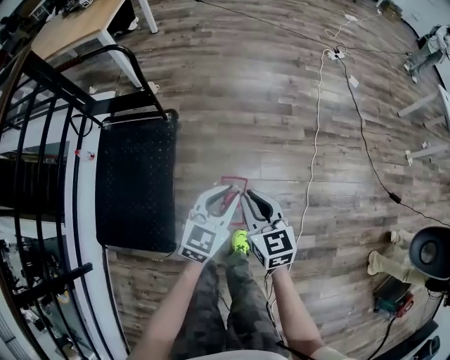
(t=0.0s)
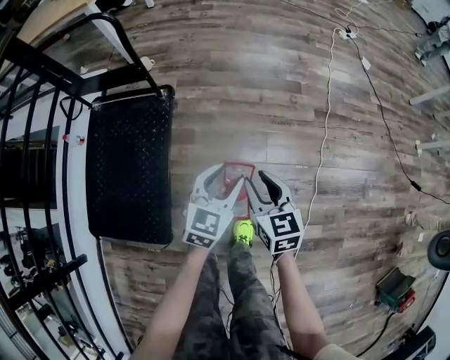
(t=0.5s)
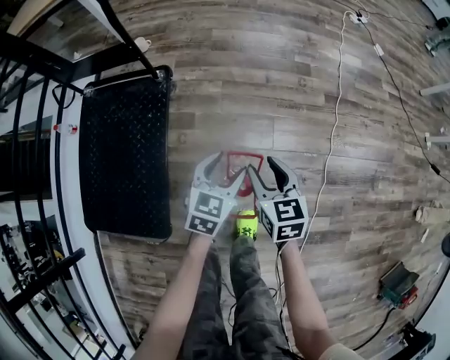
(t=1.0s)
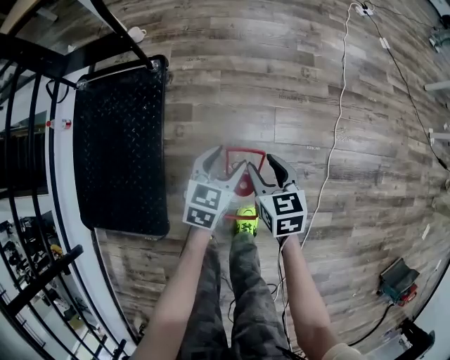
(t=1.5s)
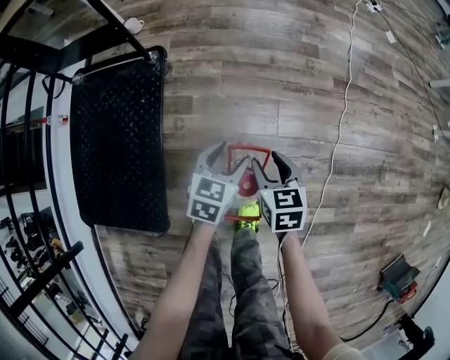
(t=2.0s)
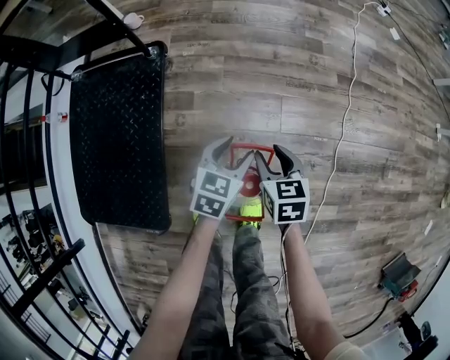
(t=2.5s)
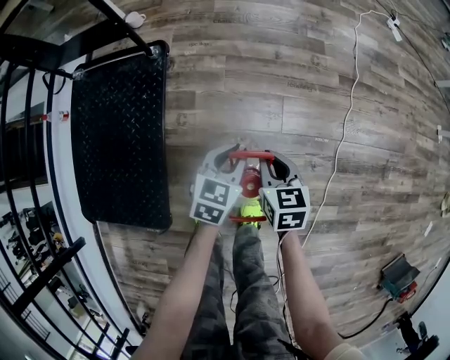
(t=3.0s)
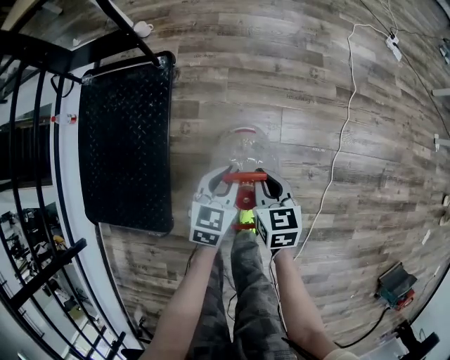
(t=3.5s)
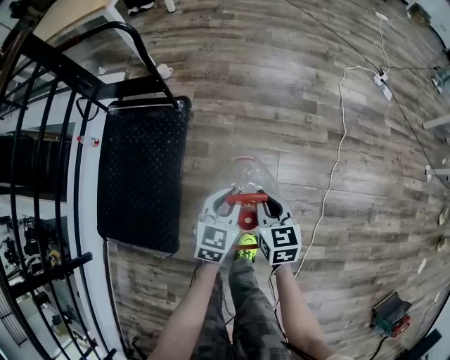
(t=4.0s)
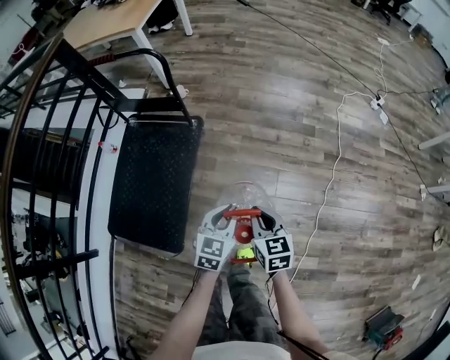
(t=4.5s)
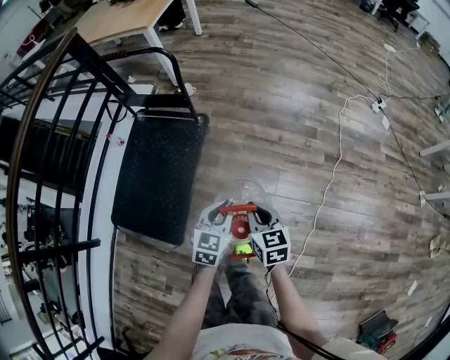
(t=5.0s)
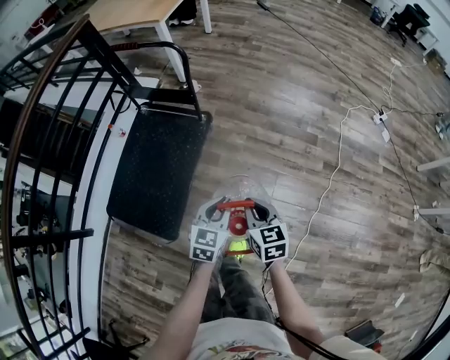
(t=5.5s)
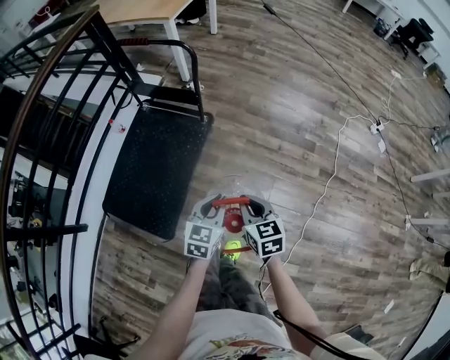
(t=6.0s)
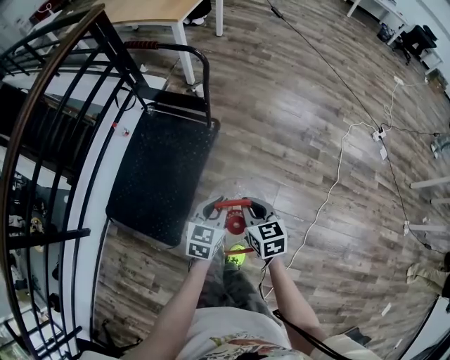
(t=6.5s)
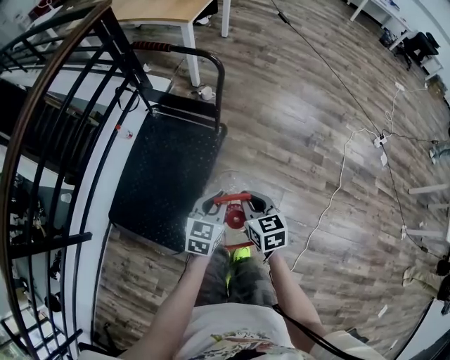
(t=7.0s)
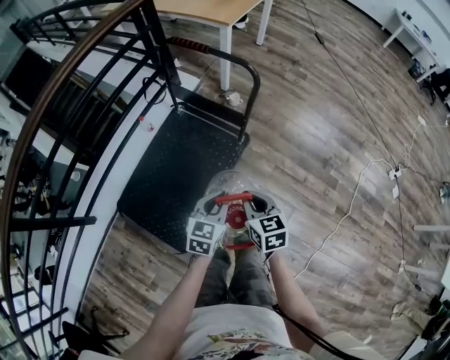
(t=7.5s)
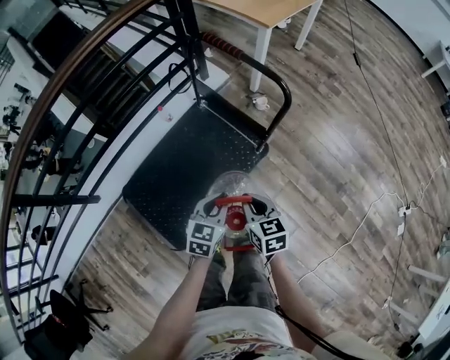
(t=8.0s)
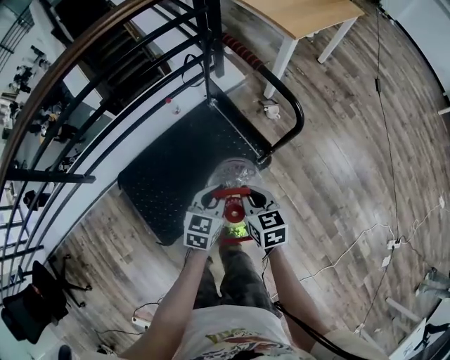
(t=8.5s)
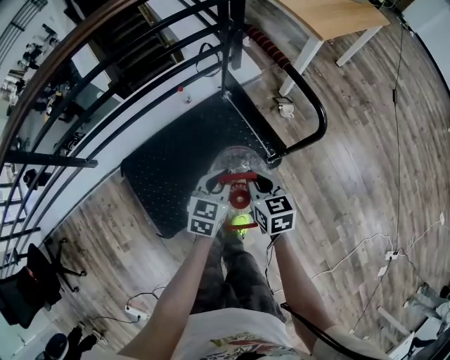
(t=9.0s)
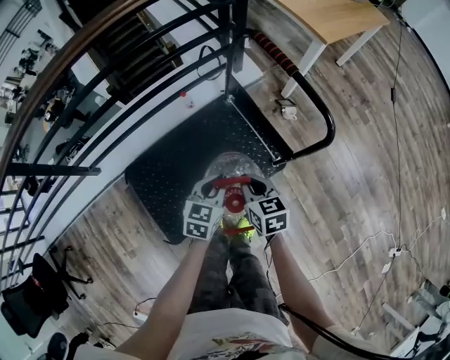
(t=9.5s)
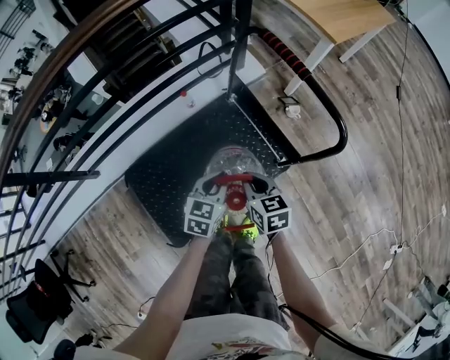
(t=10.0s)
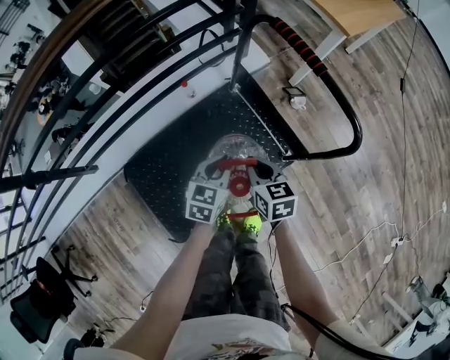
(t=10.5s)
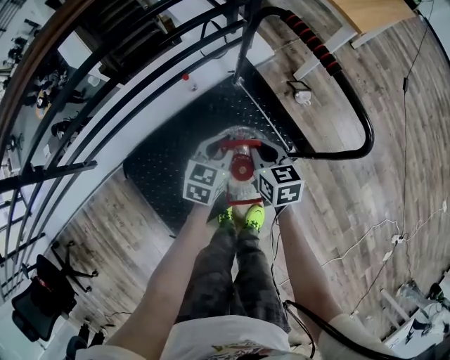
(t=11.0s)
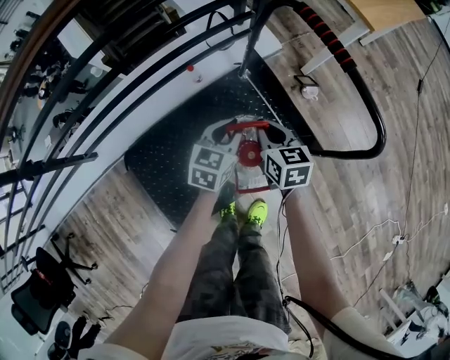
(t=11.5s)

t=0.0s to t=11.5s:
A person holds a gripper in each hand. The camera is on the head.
t=0.0s to t=2.0s: The grippers both shift downward by roughly 35 cm. The right gripper swivels about 20 degrees, and opens. The left gripper changes its angle by approximately 20 degrees, and opens its fingers.
t=2.0s to t=4.0s: The two grippers go some 15 cm upward. The left gripper closes. Meanwhile the right gripper closes up.
t=4.0s to t=6.0s: Both grippers move upward and to the left, roughly 20 cm. The right gripper rotates roughly 20 degrees.
t=6.0s to t=7.5s: The two grippers go about 25 cm to the left and forward.
t=7.5s to t=9.5s: The left gripper moves about 25 cm, and swivels roughly 30 degrees. Meanwhile the right gripper shifts by some 30 cm, and rotates about 30 degrees.
t=9.5s to t=11.5s: Both grippers move forward and downward, roughly 20 cm.

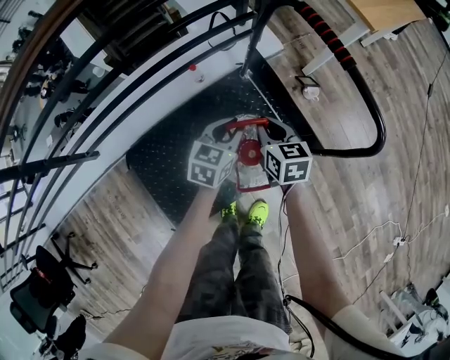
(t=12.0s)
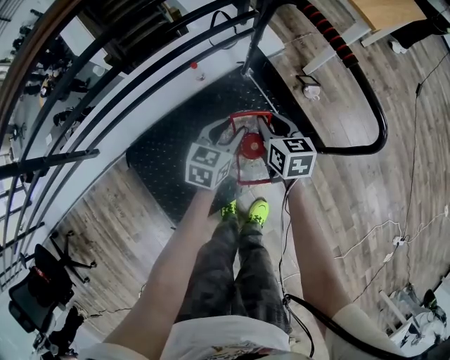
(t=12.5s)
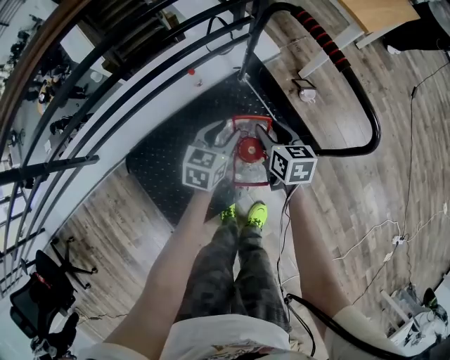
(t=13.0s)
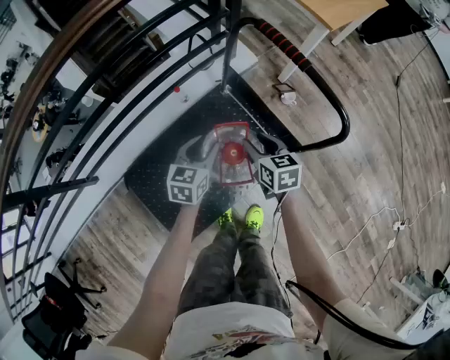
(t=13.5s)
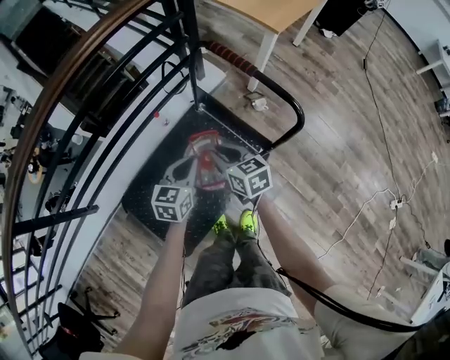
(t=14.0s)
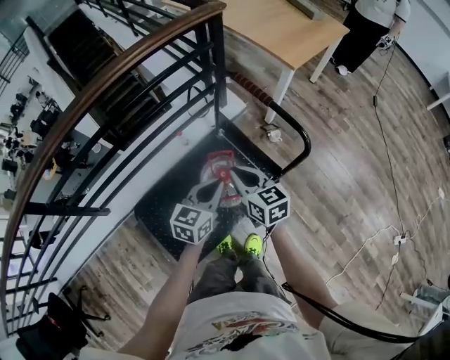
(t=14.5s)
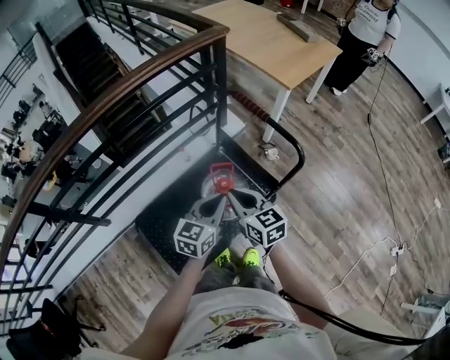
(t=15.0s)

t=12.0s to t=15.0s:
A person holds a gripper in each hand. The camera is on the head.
t=12.0s to t=13.5s: The grippers both shift upward by about 5 cm. The right gripper opens up. Meanwhile the left gripper opens its fingers.
t=13.5s to t=15.0s: Both grippers travel together upward and backward, roughly 30 cm. The right gripper swivels some 20 degrees, and closes up; the left gripper closes up.

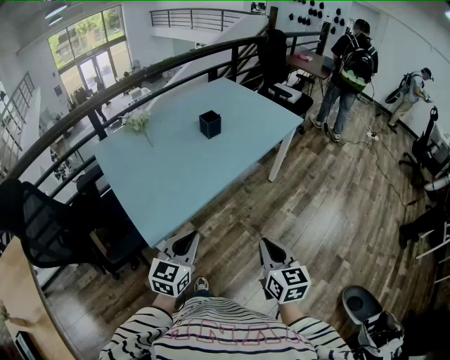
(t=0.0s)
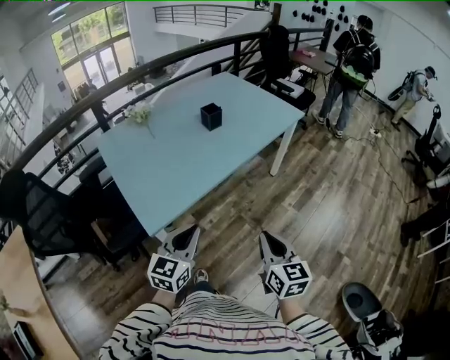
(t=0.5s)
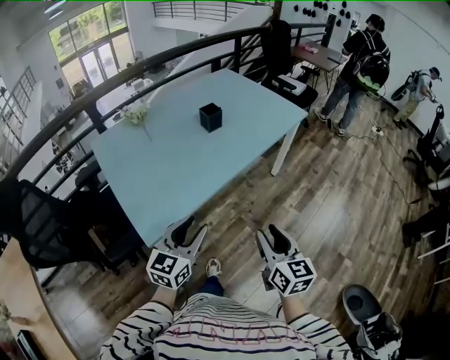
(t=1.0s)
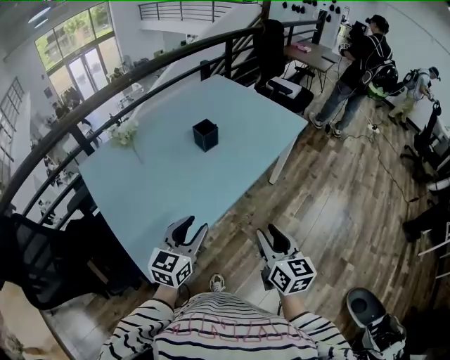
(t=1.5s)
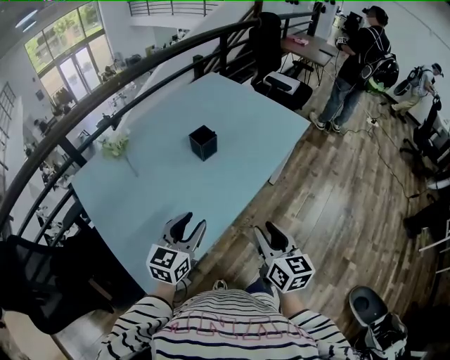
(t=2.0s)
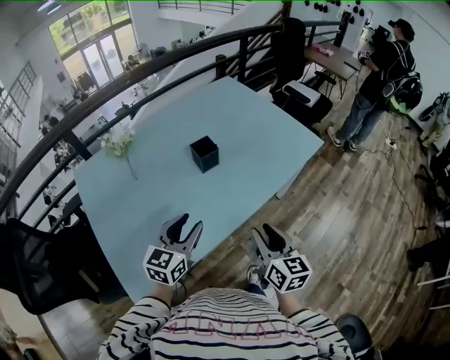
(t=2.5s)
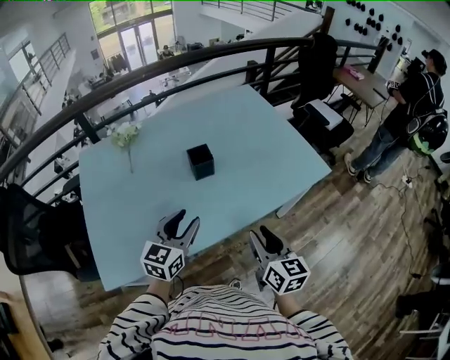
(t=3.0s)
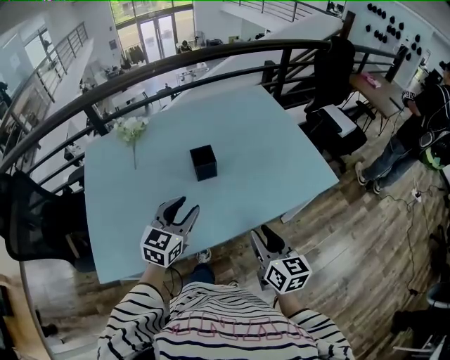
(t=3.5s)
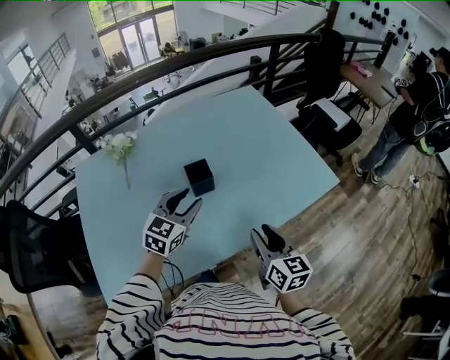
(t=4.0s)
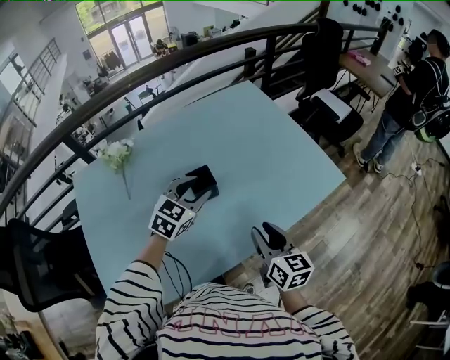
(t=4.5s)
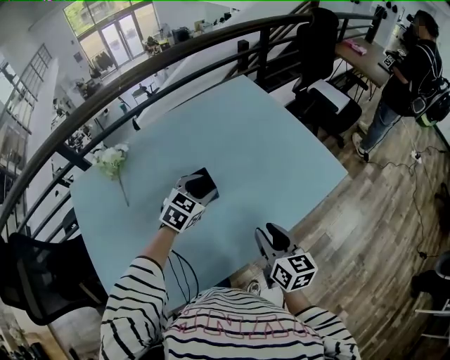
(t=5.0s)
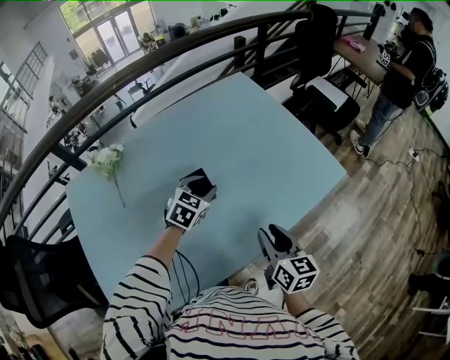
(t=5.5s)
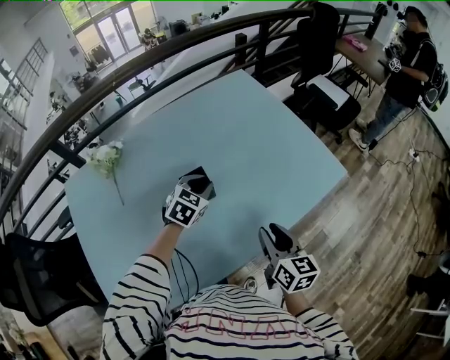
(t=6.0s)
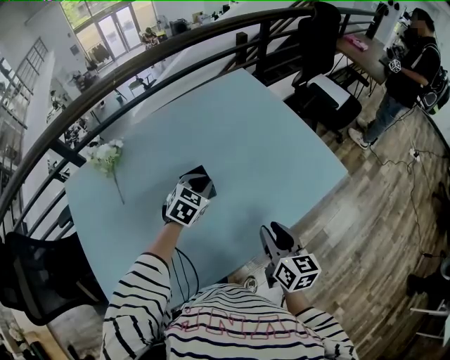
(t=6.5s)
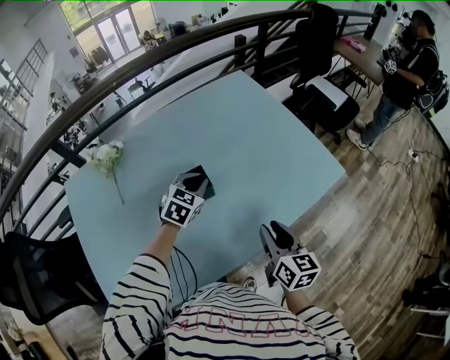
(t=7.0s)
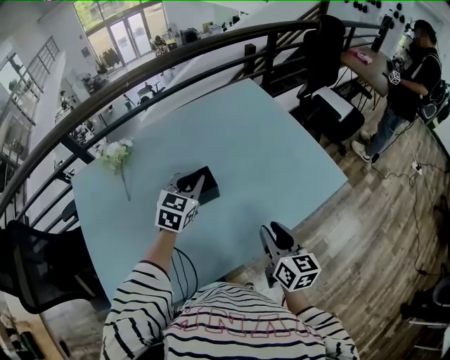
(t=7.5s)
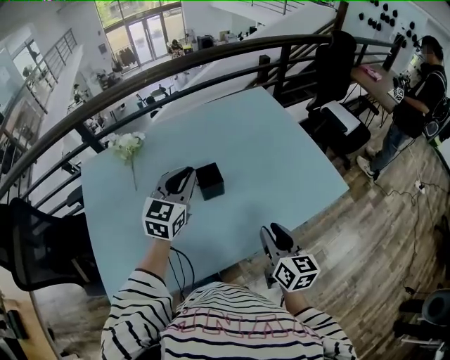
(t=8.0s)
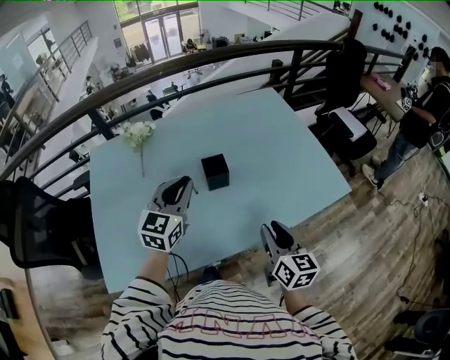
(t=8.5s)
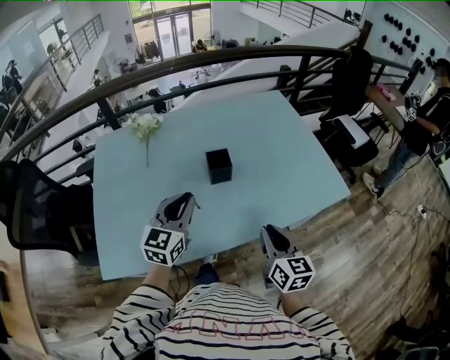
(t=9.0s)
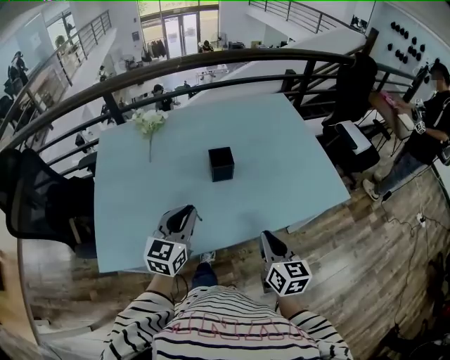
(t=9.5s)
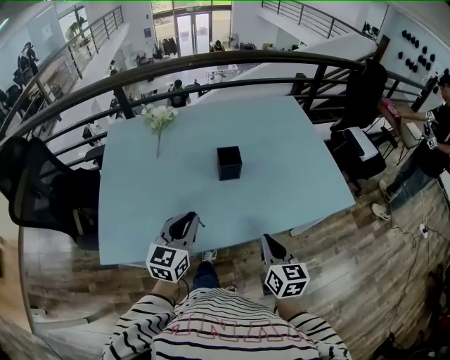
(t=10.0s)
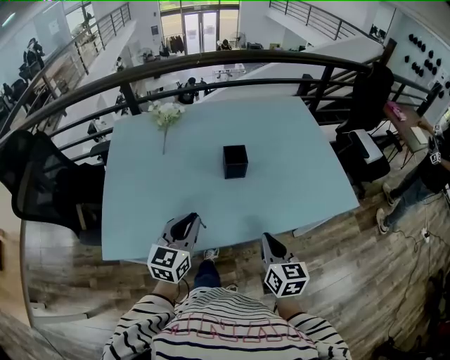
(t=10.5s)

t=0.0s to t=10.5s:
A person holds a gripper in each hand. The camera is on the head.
t=0.0s to t=2.0s: The grippers both shift forward by some 30 cm. The right gripper opens. Meanwhile the left gripper opens up.
t=2.0s to t=4.0s: The left gripper changes place by about 30 cm. Meanwhile the right gripper shifts by approximately 30 cm, and rotates approximately 20 degrees.
t=4.0s to t=6.5s: The left gripper moves forward and downward, approximately 20 cm, swivels approximately 20 degrees, and closes its fingers. The right gripper goes roughly 5 cm forward.
t=6.5s to t=8.5s: The left gripper goes about 25 cm backward, upward and to the left, and points its fingers approximately 30 degrees further upward. Meanwhile the right gripper heads backward, covering approximately 5 cm.
t=8.5s to t=10.5s: The left gripper heads backward and downward, covering roughly 20 cm. Meanwhile the right gripper is displaced backward by about 5 cm, and closes its fingers.

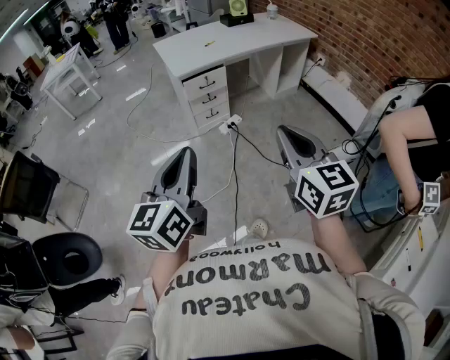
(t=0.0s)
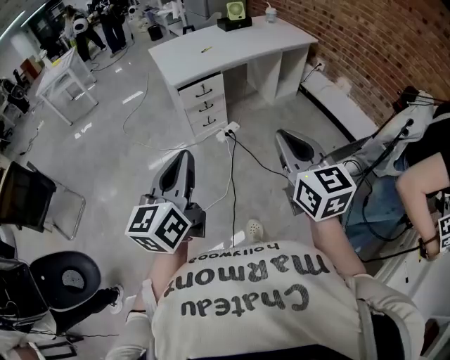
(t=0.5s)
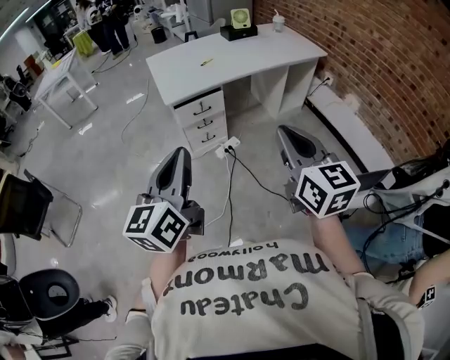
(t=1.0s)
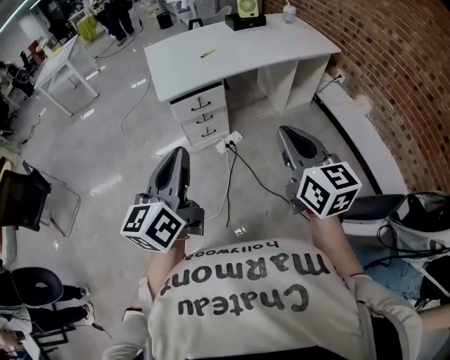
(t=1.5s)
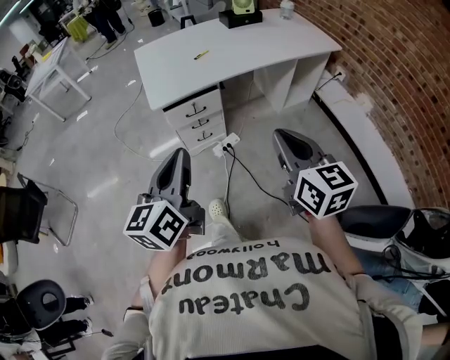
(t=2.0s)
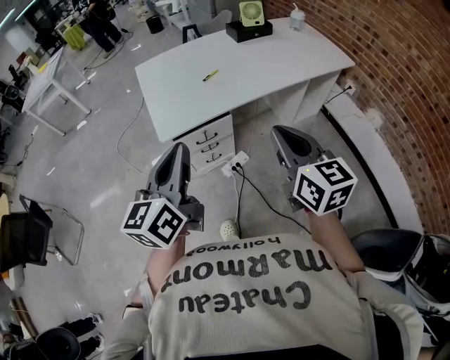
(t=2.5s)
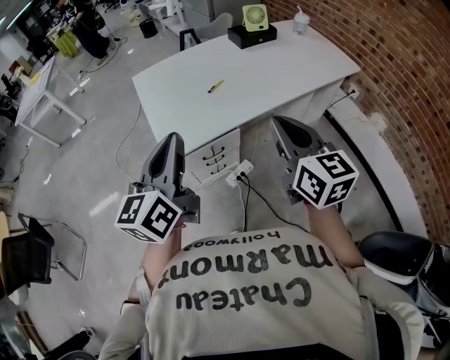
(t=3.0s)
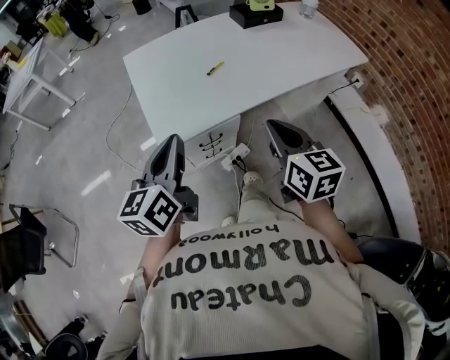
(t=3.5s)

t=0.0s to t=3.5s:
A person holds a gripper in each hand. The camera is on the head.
t=0.0s to t=2.0s: Both grippers travel together forward, approximately 40 cm.
t=2.0s to t=3.5s: The grippers both shift forward by roughly 30 cm.
